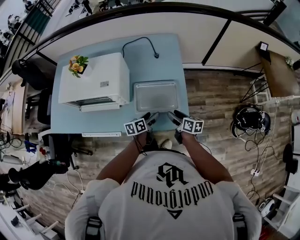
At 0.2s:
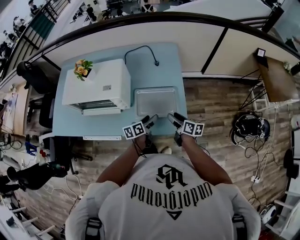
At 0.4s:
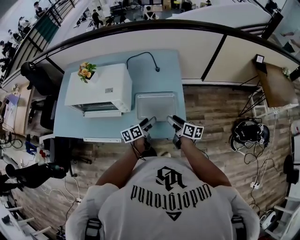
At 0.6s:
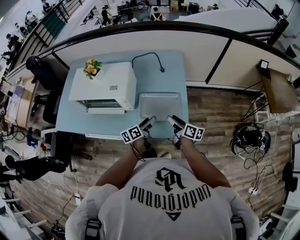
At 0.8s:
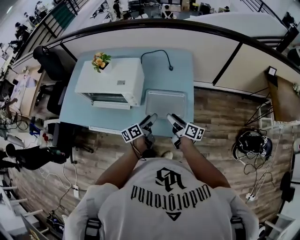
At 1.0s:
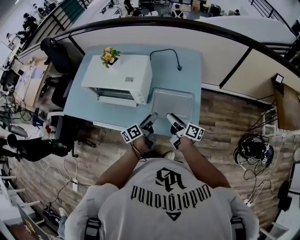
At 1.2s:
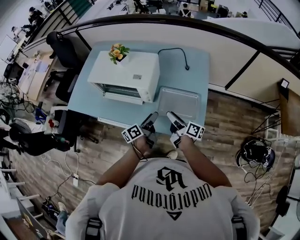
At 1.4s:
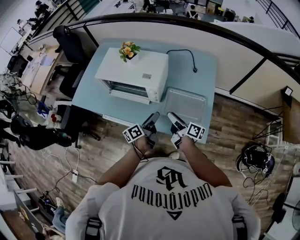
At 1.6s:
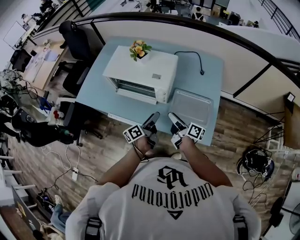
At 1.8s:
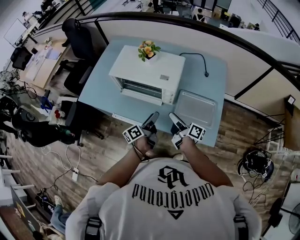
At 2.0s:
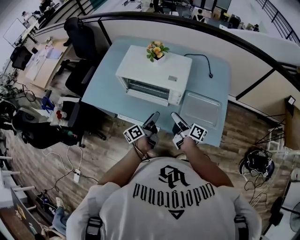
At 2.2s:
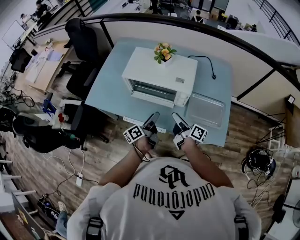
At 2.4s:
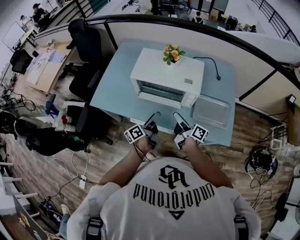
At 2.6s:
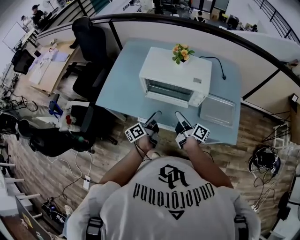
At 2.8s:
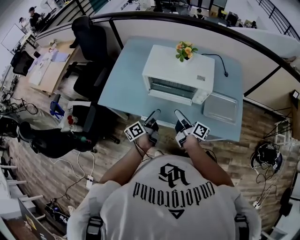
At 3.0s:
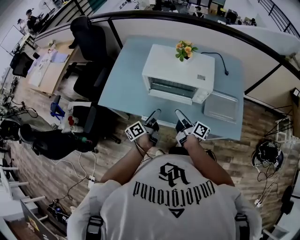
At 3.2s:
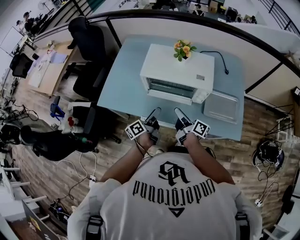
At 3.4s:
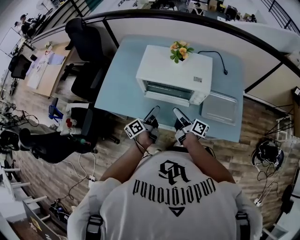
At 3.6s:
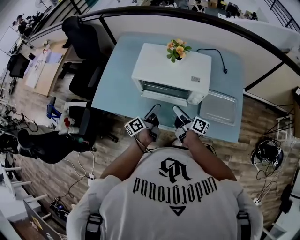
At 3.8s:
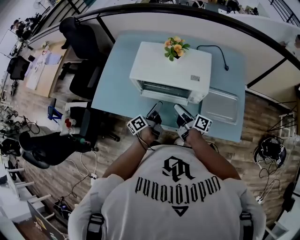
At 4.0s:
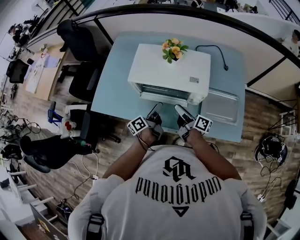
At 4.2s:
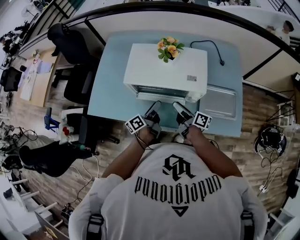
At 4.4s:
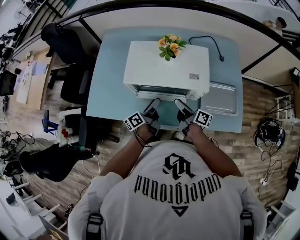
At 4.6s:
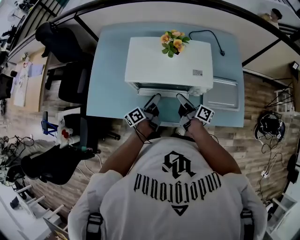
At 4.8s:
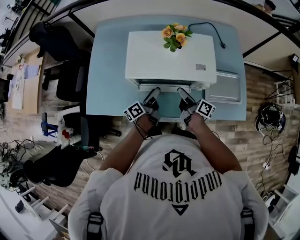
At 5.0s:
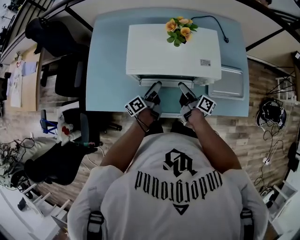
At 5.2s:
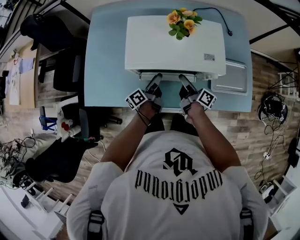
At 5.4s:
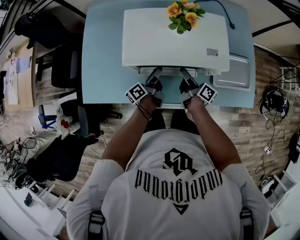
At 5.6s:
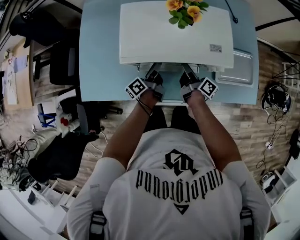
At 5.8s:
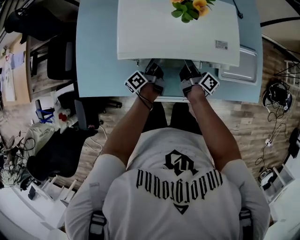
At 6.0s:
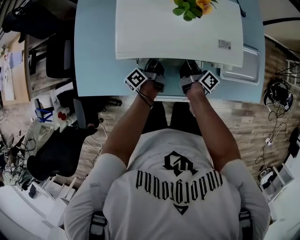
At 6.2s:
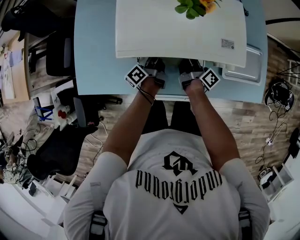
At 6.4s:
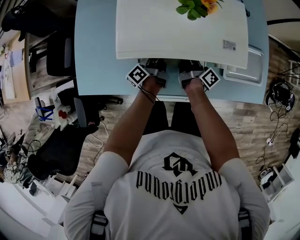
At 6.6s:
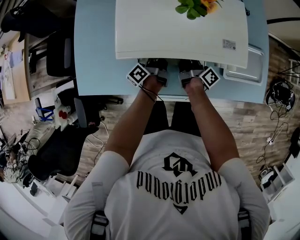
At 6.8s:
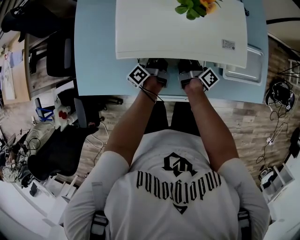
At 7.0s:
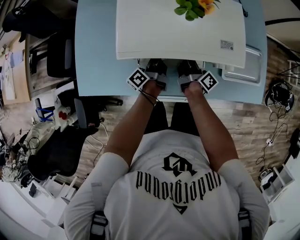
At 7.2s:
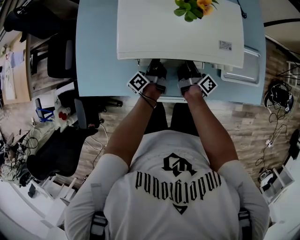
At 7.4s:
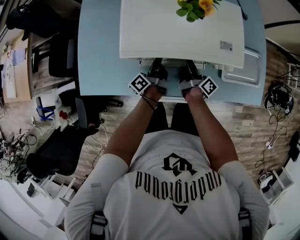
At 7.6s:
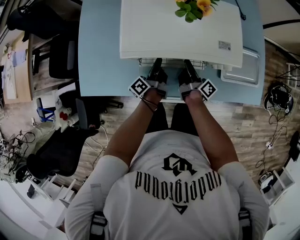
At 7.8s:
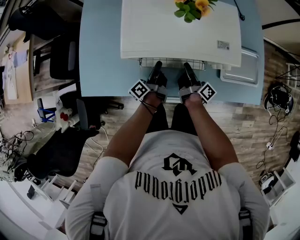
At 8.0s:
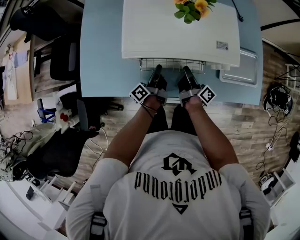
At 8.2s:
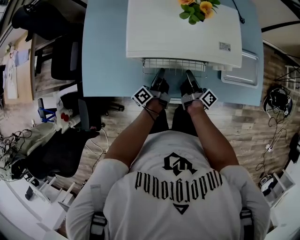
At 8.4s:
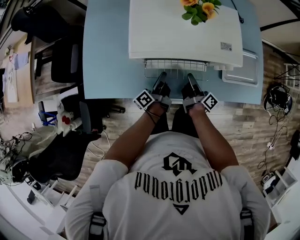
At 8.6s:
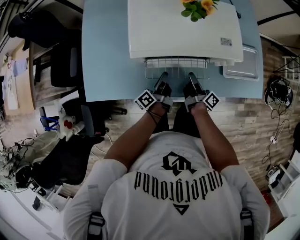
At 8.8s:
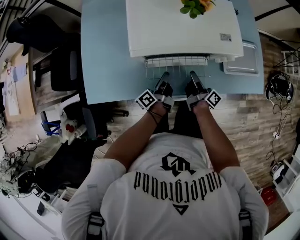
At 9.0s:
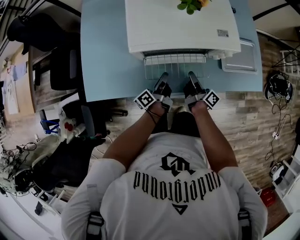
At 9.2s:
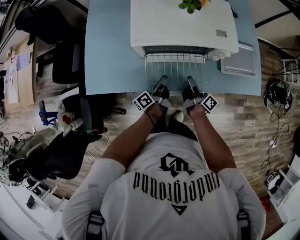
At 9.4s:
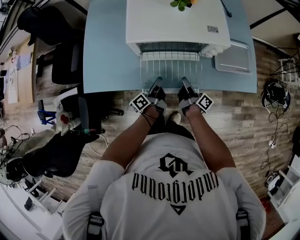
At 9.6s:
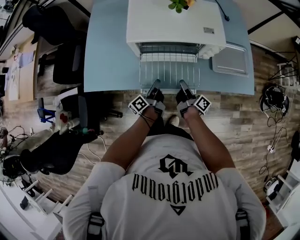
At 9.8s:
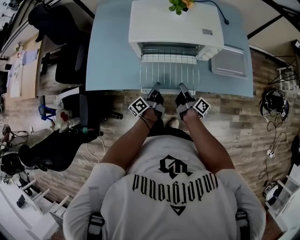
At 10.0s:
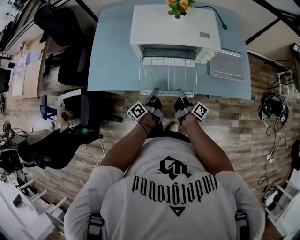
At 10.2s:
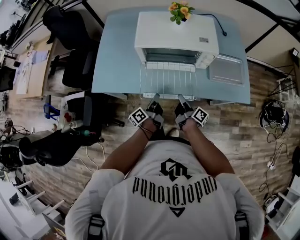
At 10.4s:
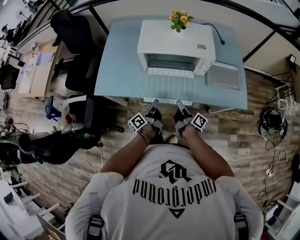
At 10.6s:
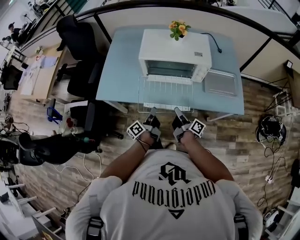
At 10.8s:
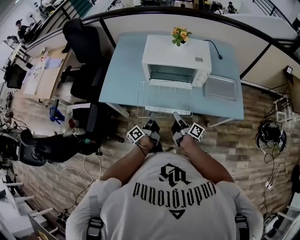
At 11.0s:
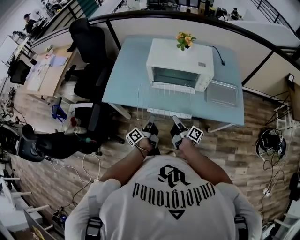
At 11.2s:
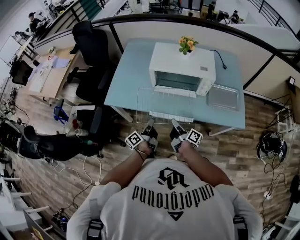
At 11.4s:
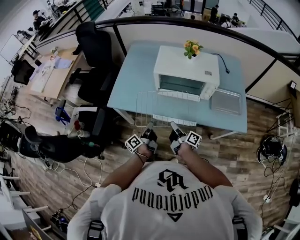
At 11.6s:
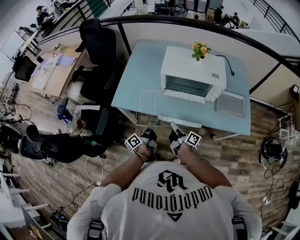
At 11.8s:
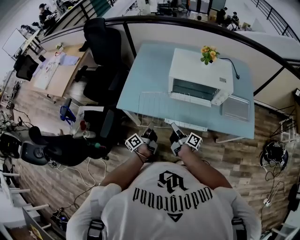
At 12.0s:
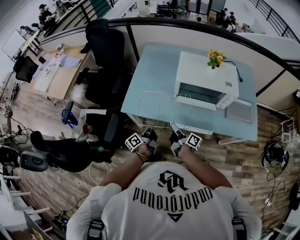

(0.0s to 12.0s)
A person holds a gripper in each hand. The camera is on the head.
0.0s - 1.6s: The two grippers go about 25 cm to the left and upward. The right gripper changes its angle by some 30 degrees, while the left gripper swivels about 40 degrees.
1.6s - 3.0s: The grippers both shift to the left by some 25 cm.
3.0s - 4.4s: The left gripper moves forward and to the right, about 15 cm. The right gripper heads forward, covering some 10 cm.
4.4s - 6.0s: The grippers both shift downward and forward by roughly 15 cm. The right gripper swivels roughly 20 degrees.
6.0s - 7.6s: The right gripper closes, while the left gripper closes.
7.6s - 9.0s: Both grippers travel together backward, some 10 cm.
9.0s - 10.4s: Both grippers travel together backward and upward, approximately 15 cm.
10.4s - 12.0s: The grippers both shift to the left by some 20 cm.

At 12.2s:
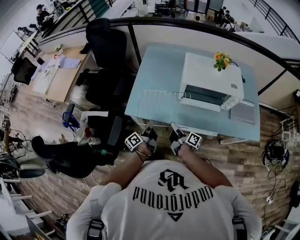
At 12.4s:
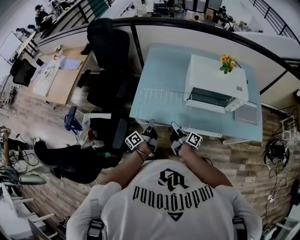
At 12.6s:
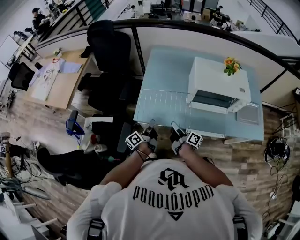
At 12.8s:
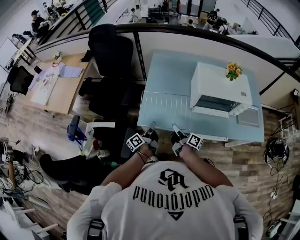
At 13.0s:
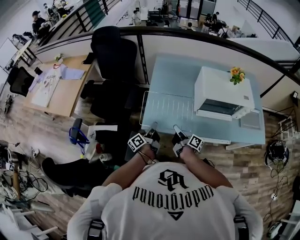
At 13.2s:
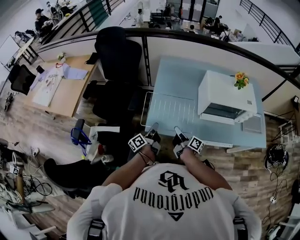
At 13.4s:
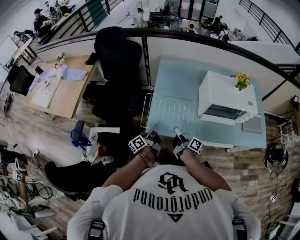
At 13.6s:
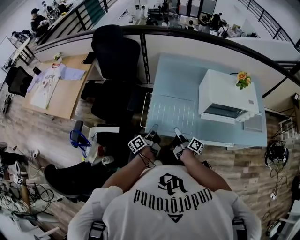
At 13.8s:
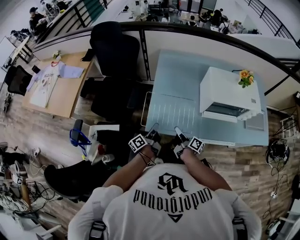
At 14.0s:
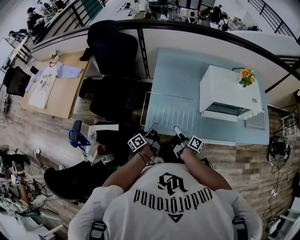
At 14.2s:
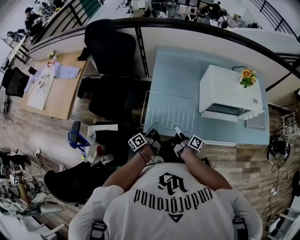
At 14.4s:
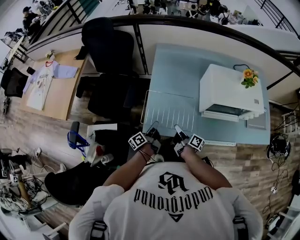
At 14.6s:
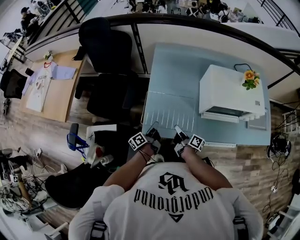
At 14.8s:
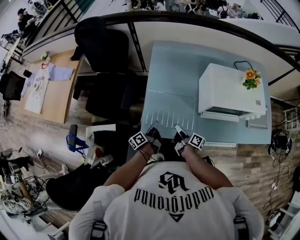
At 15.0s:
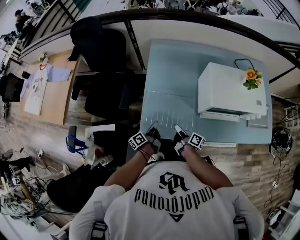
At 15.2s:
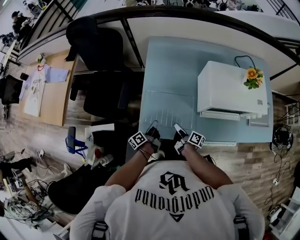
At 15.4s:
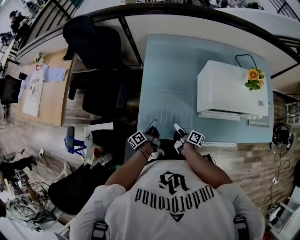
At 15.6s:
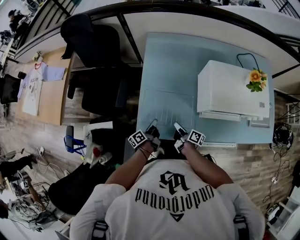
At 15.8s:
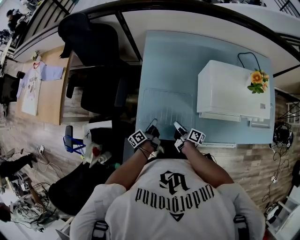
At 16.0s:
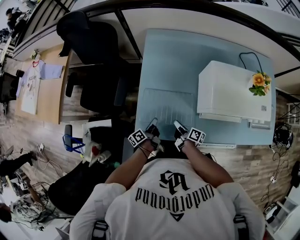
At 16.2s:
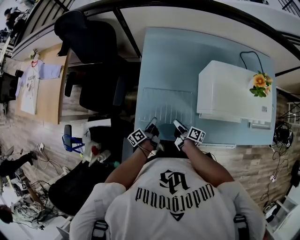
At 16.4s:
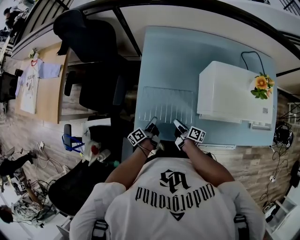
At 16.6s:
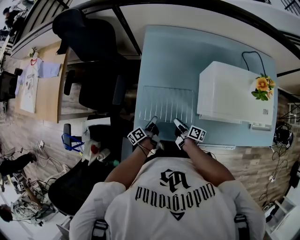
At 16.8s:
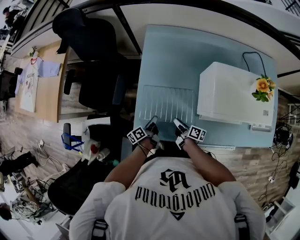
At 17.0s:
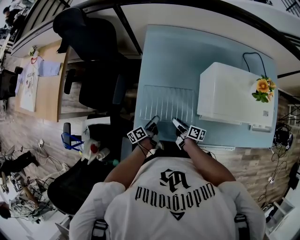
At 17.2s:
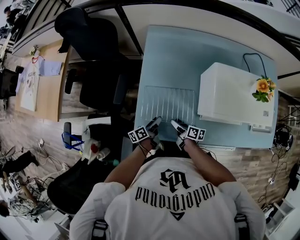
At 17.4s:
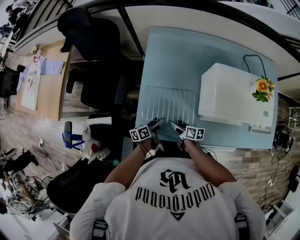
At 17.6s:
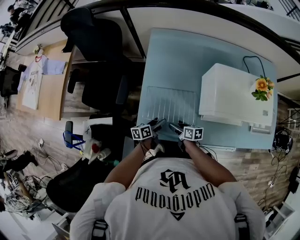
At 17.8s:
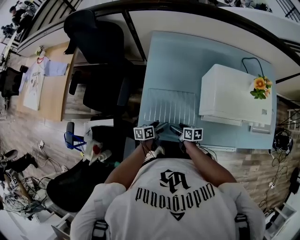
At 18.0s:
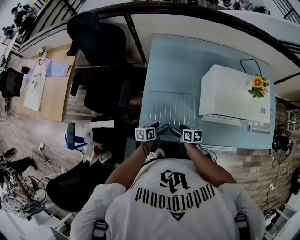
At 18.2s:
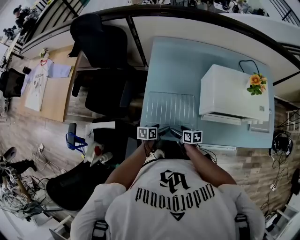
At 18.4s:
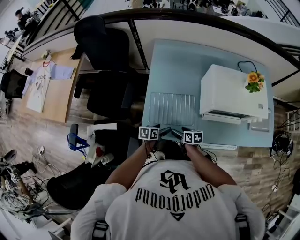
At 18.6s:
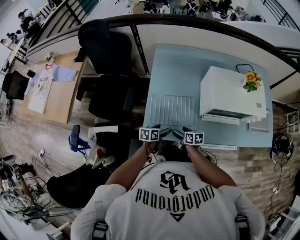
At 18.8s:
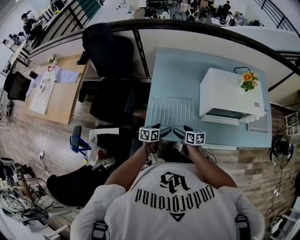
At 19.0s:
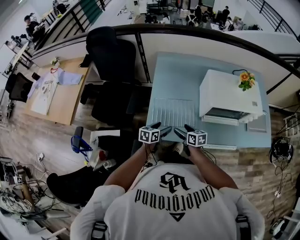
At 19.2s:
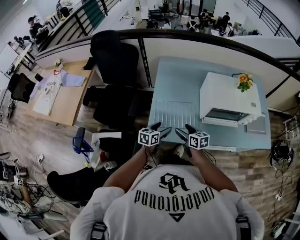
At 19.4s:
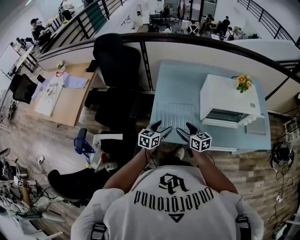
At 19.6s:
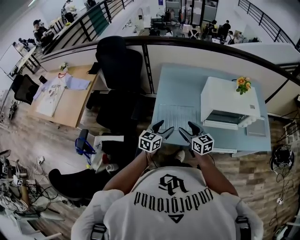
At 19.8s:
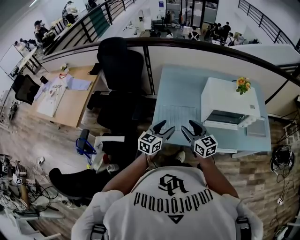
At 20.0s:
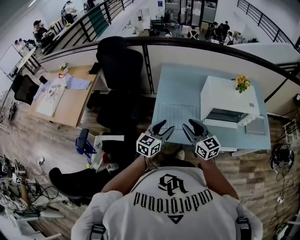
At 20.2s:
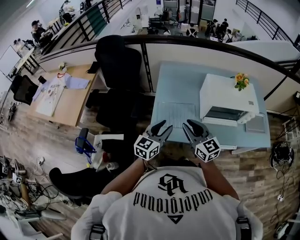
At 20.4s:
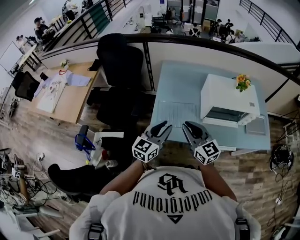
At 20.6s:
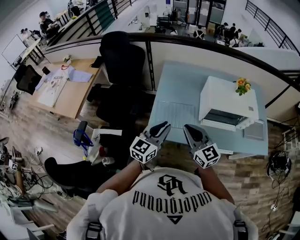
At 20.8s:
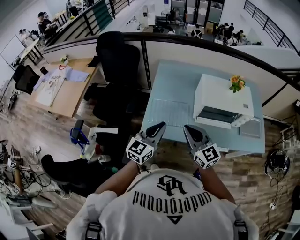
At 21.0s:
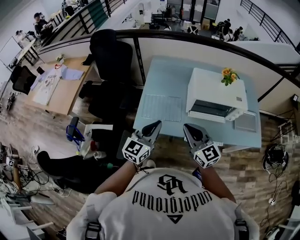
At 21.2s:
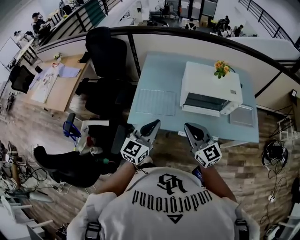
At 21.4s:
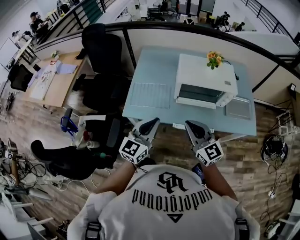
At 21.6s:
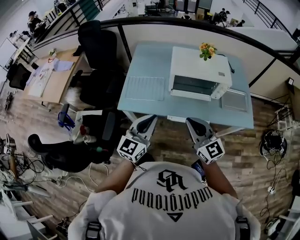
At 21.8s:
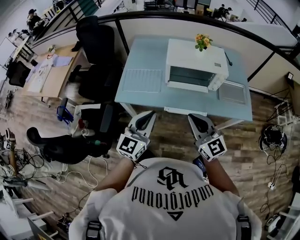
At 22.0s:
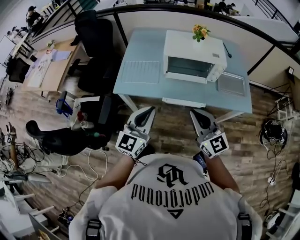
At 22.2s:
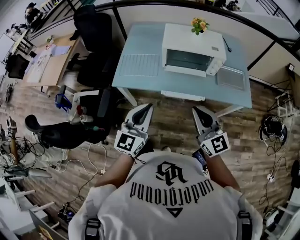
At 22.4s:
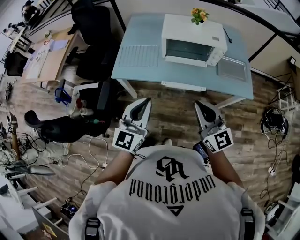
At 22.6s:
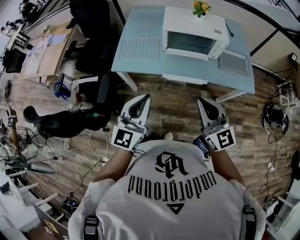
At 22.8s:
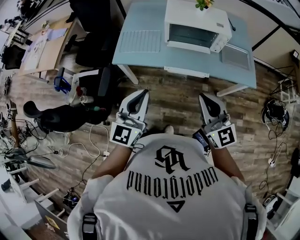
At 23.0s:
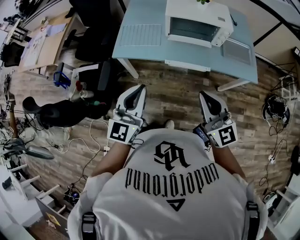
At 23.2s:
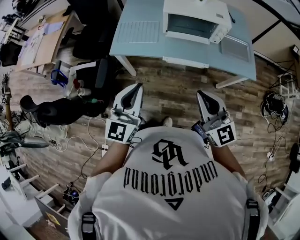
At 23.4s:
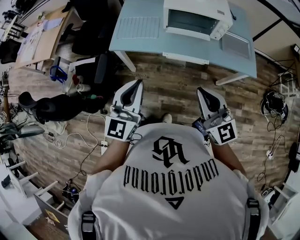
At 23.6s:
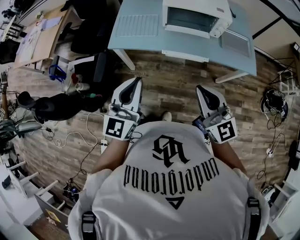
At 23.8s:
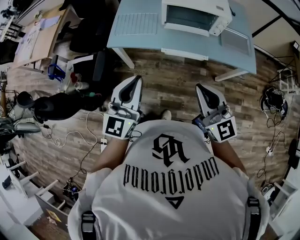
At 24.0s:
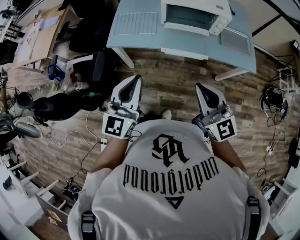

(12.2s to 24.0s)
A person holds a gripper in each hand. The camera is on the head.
12.2s - 13.6s: Both grippers move to the left and forward, about 20 cm.
13.6s - 15.2s: The right gripper shifts approximately 10 cm downward and forward, while the left gripper shifts approximately 15 cm downward, forward and to the right.
15.2s - 16.6s: Both grippers move downward, about 5 cm.
16.6s - 18.2s: The two grippers go about 5 cm backward. The right gripper turns by some 40 degrees, and opens its fingers. Meanwhile the left gripper swivels about 50 degrees, and opens its fingers.
18.2s - 19.6s: The grippers both shift upward by approximately 25 cm. The left gripper swivels some 50 degrees. Meanwhile the right gripper turns by about 40 degrees.
19.6s - 21.0s: Both grippers travel together upward, backward and to the right, approximately 20 cm. The left gripper swivels some 20 degrees, and closes up, while the right gripper turns by some 20 degrees, and closes up.
21.0s - 22.6s: The grippers both shift backward and to the right by approximately 30 cm.
22.6s - 24.0s: The right gripper moves approximately 5 cm.
